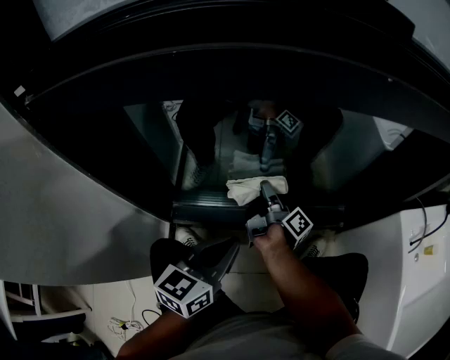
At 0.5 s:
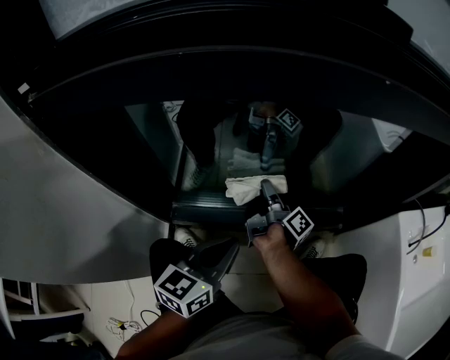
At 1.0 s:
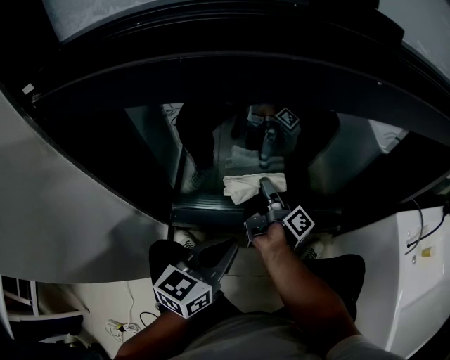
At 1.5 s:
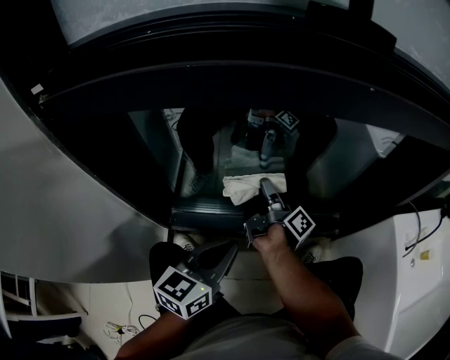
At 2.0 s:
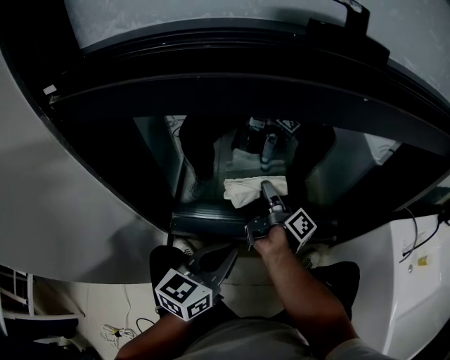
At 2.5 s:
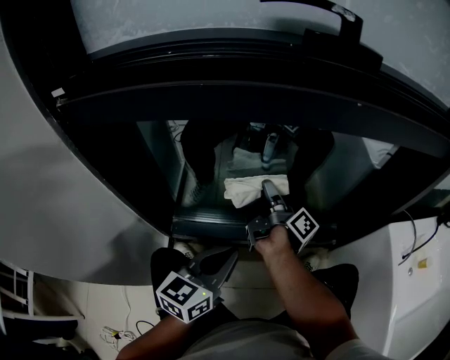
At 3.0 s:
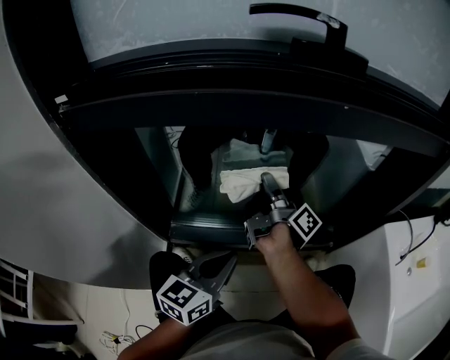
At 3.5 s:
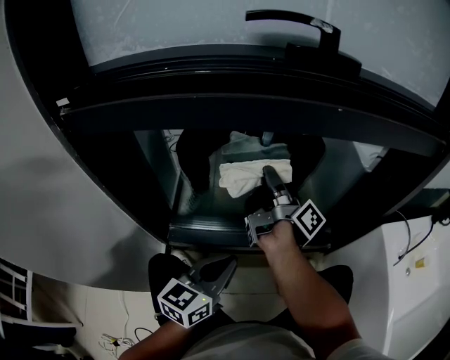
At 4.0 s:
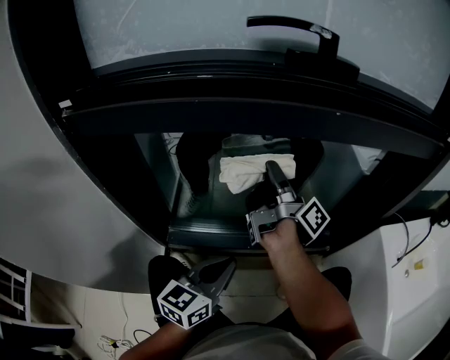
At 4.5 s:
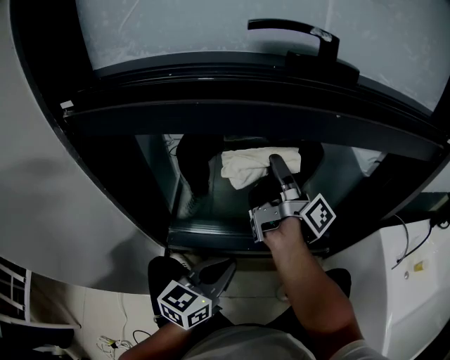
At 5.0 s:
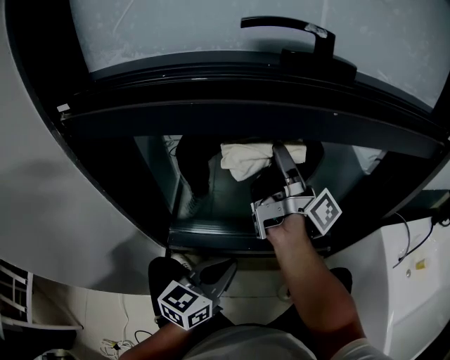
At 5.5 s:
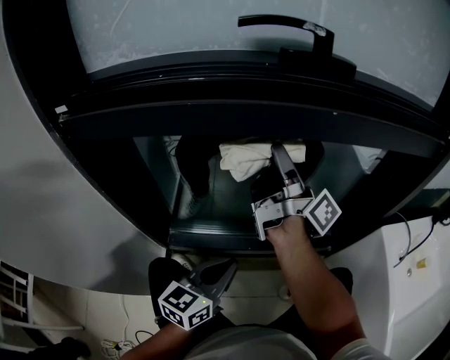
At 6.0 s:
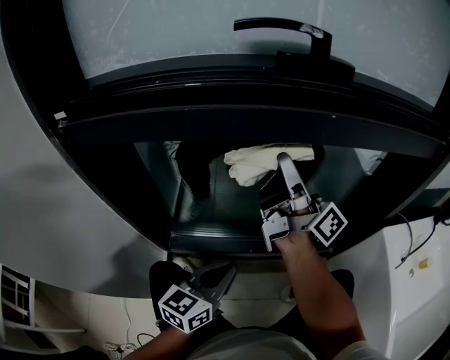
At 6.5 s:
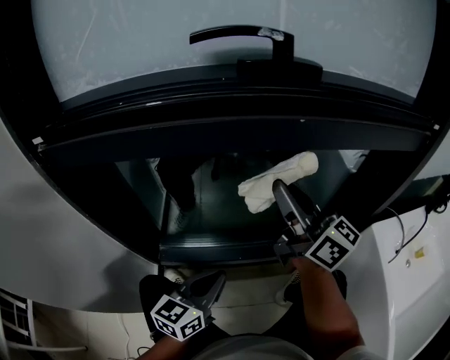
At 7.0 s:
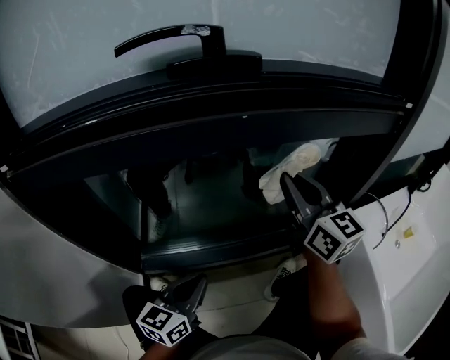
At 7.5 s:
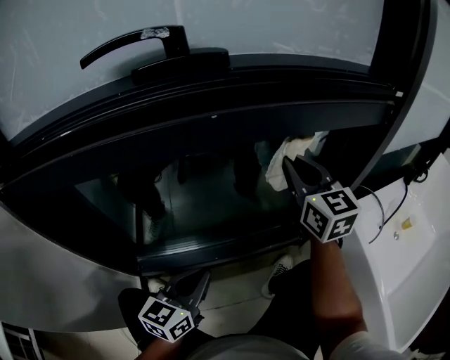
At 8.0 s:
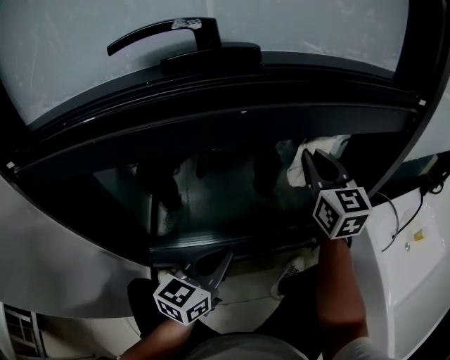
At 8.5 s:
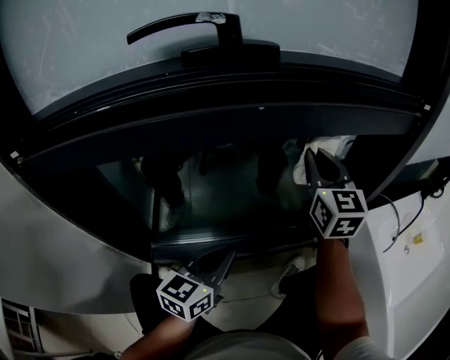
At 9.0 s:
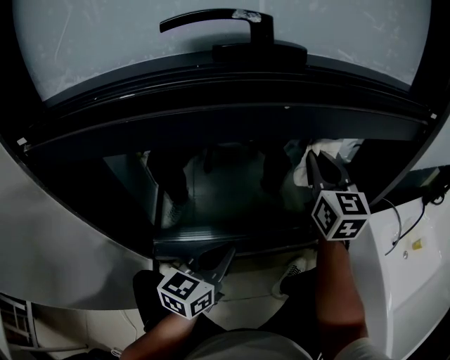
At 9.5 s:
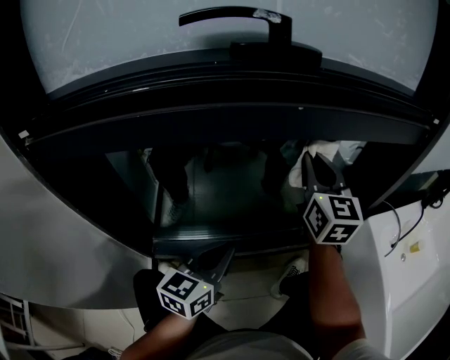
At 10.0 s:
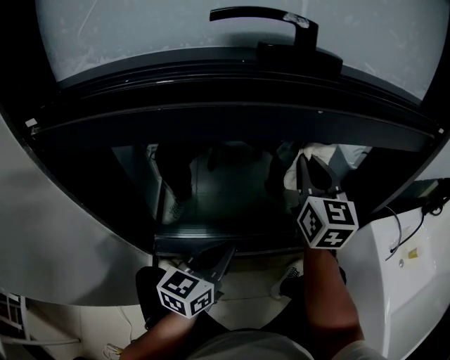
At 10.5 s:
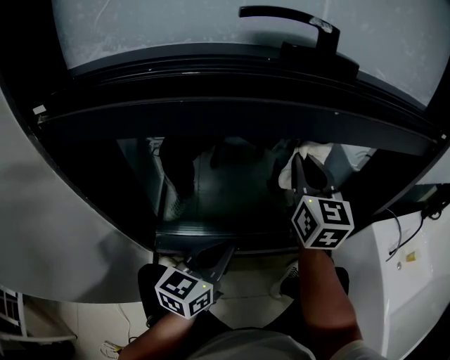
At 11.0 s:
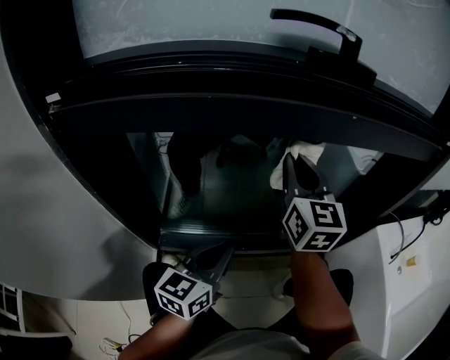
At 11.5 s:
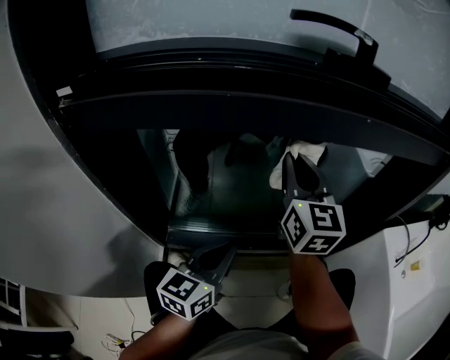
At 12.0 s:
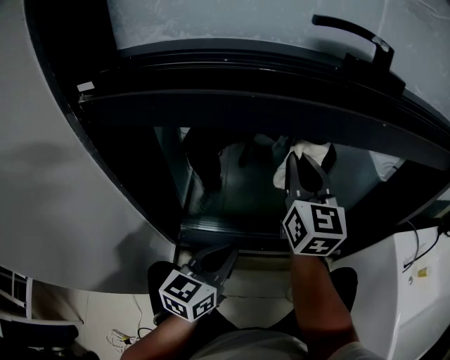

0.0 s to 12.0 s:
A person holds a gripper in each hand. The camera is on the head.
6.0 to 8.0 s: The left gripper moves some 10 cm.
8.0 to 10.0 s: The left gripper changes place by some 5 cm.
10.0 to 12.0 s: The left gripper changes place by some 10 cm.

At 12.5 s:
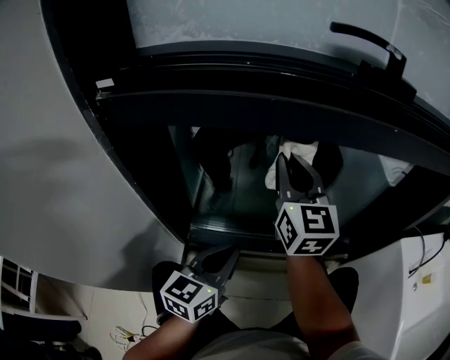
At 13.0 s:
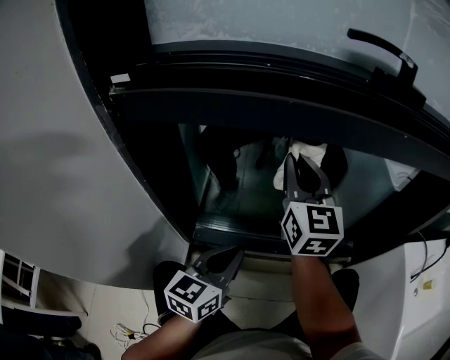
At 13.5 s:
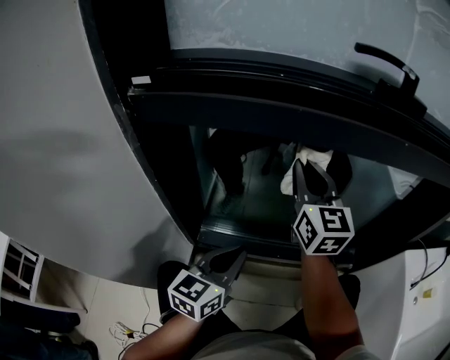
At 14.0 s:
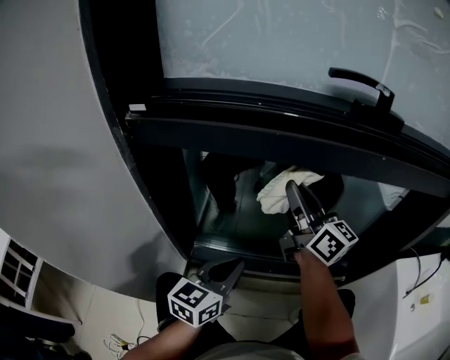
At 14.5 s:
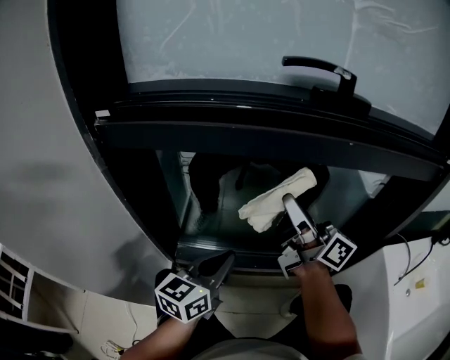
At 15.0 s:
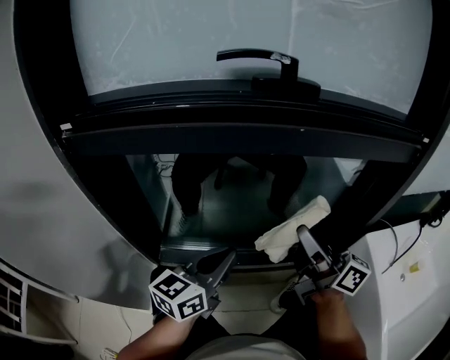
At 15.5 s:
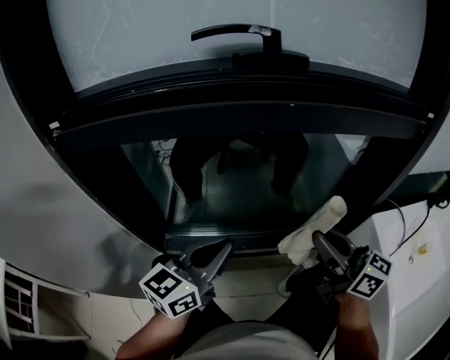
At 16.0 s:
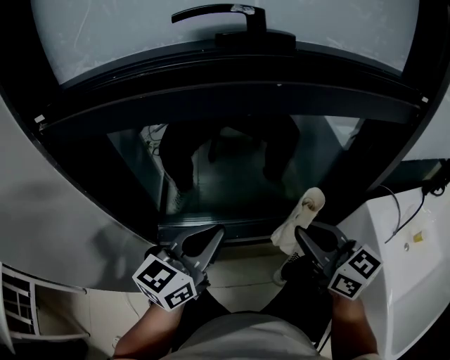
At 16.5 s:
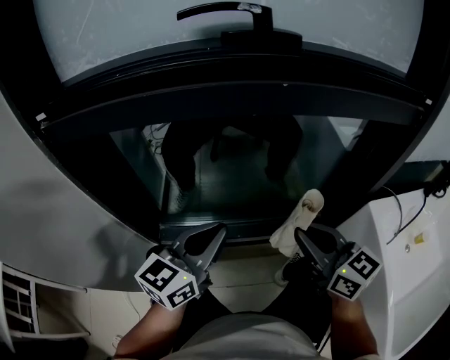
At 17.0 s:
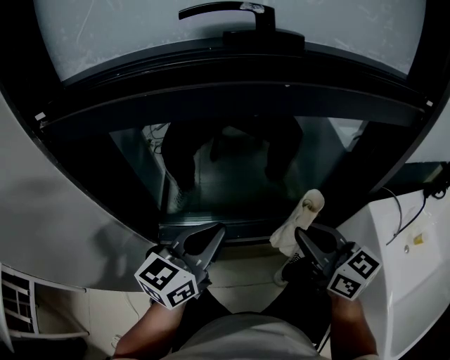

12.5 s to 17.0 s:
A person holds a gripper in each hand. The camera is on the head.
12.5 to 14.5 s: The left gripper shifts by roughly 5 cm.
14.5 to 17.0 s: The left gripper shifts by approximately 10 cm.

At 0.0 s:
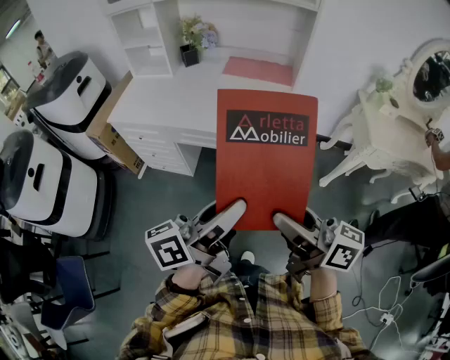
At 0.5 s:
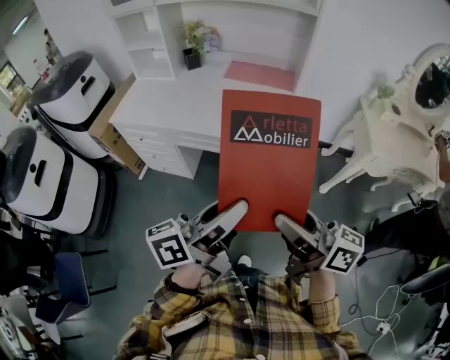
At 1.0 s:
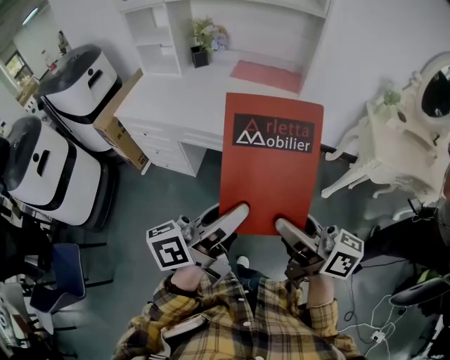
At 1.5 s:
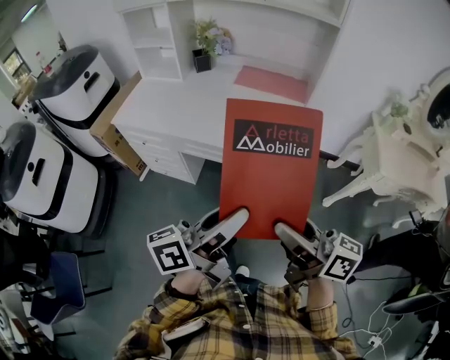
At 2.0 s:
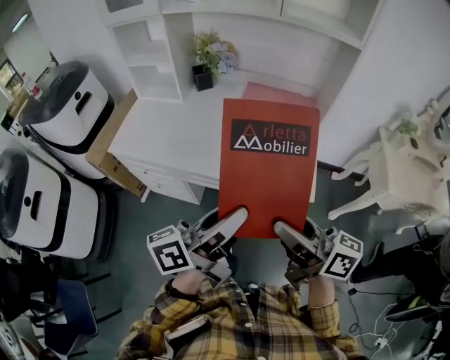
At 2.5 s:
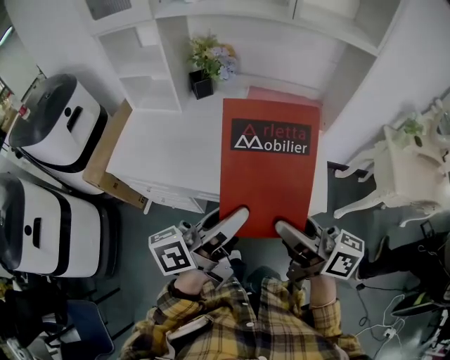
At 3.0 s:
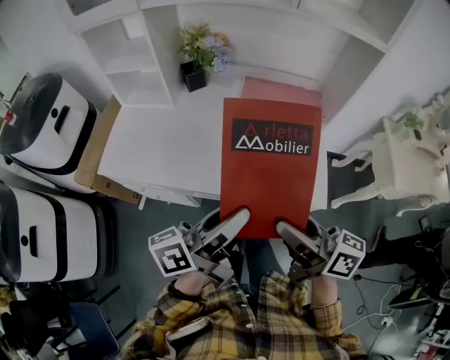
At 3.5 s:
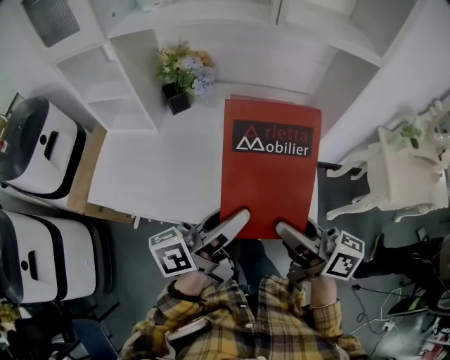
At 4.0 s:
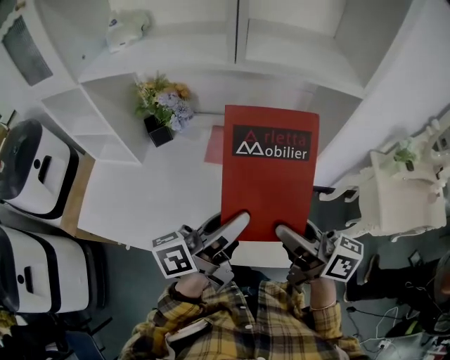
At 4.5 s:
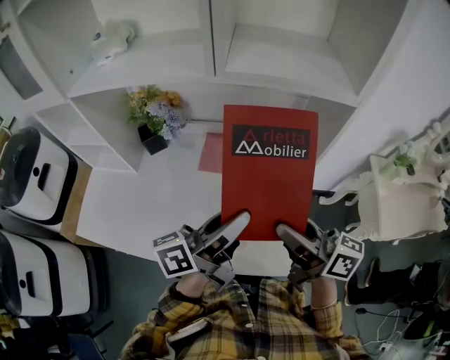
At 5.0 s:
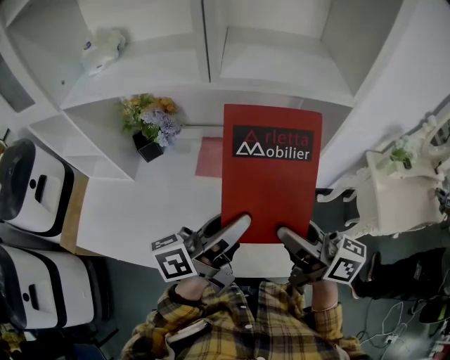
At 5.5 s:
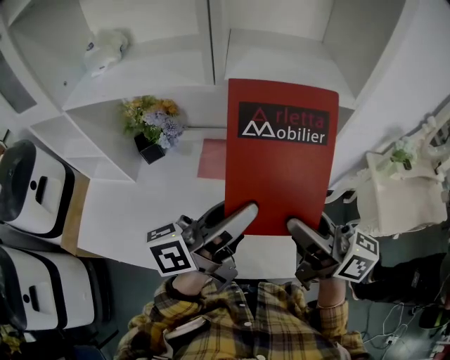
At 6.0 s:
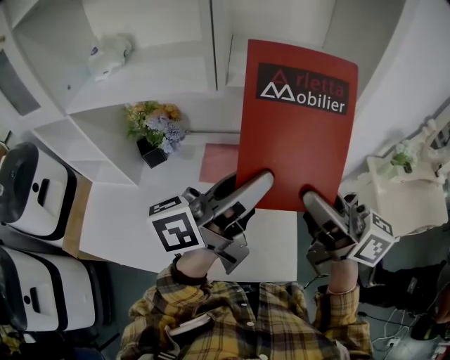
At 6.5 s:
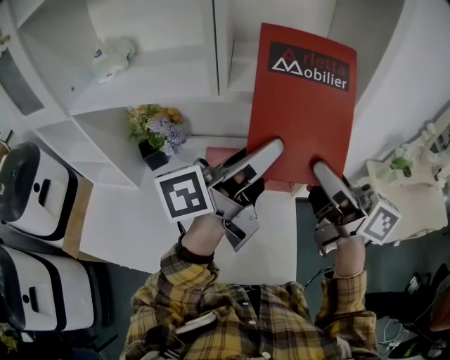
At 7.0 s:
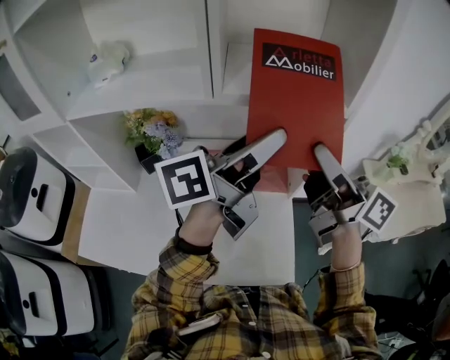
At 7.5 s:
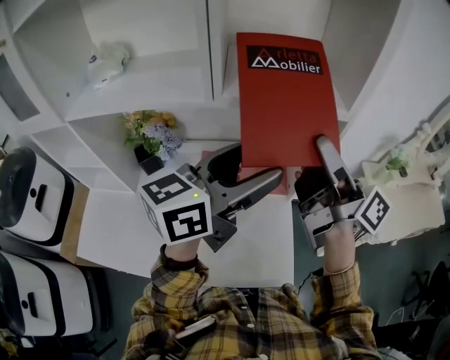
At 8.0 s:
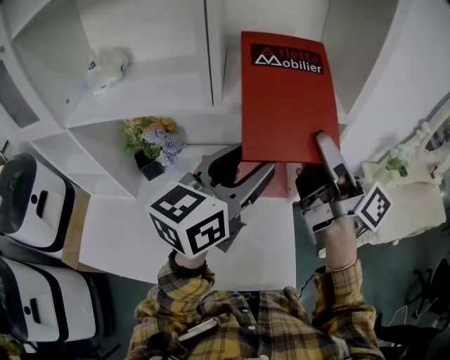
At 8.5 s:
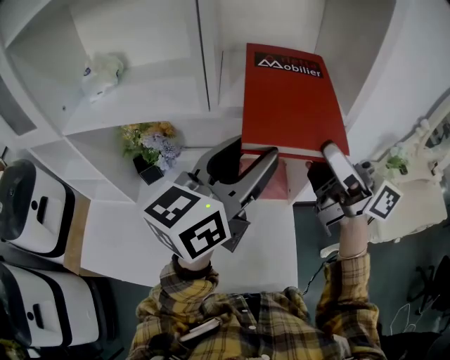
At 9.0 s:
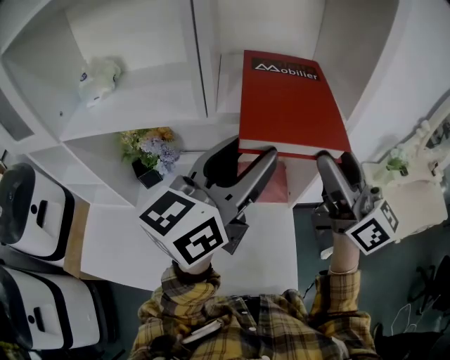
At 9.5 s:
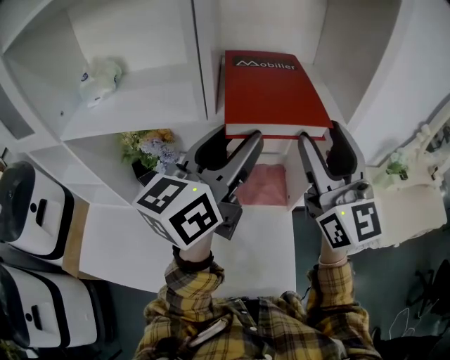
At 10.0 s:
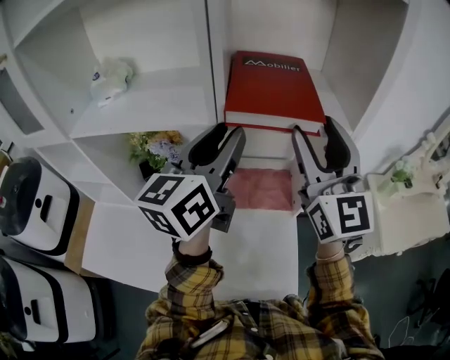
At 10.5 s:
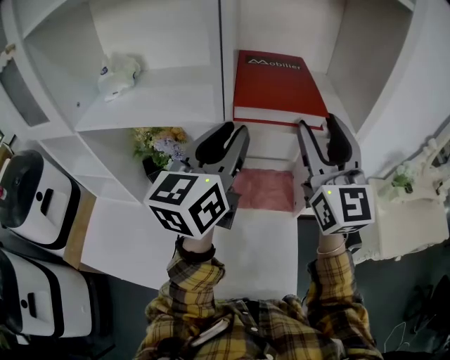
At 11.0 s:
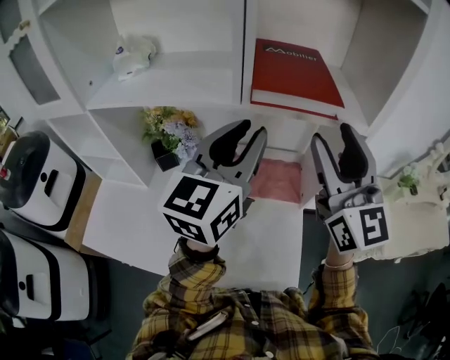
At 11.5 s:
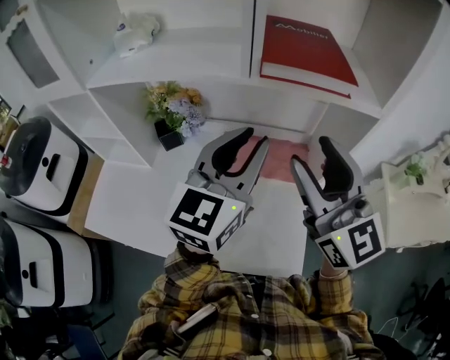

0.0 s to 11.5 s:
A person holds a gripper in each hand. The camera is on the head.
0.0 to 2.0 s: The grippers both shift forward by approximately 20 cm.
2.0 to 4.0 s: Both grippers travel together forward, approximately 25 cm.
4.0 to 6.0 s: Both grippers move upward and forward, roughly 15 cm.
6.0 to 7.5 s: The right gripper is displaced forward by some 10 cm, and changes its angle by about 30 degrees; the left gripper rotates about 30 degrees, and opens its fingers.
7.5 to 9.5 s: The right gripper twists approximately 70 degrees counterclockwise, seen from behind; the left gripper shifts approximately 5 cm forward, and turns by approximately 20 degrees.
9.5 to 11.5 s: The left gripper moves downward and backward, some 10 cm, and swivels about 20 degrees. Meanwhile the right gripper shifts about 10 cm to the left, backward and downward.
